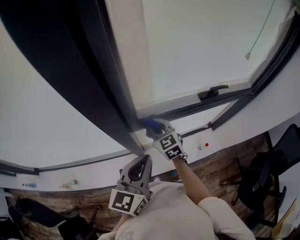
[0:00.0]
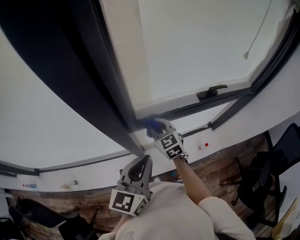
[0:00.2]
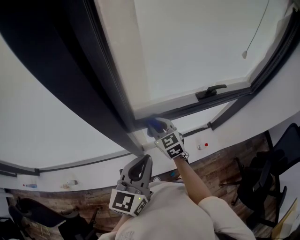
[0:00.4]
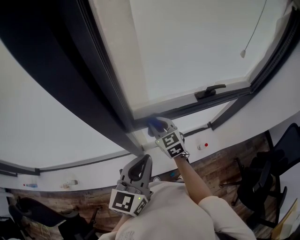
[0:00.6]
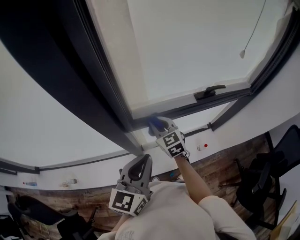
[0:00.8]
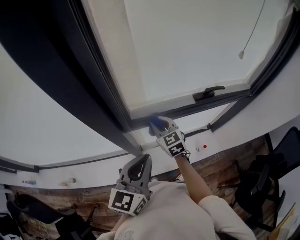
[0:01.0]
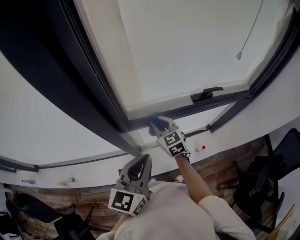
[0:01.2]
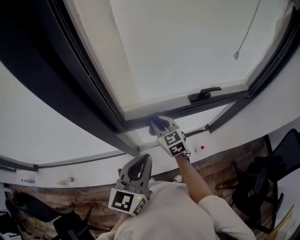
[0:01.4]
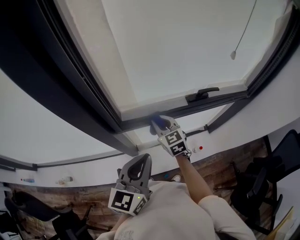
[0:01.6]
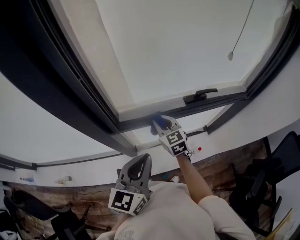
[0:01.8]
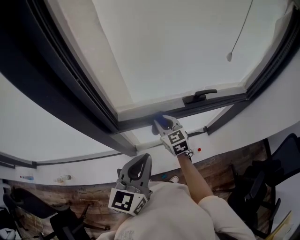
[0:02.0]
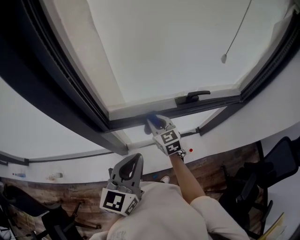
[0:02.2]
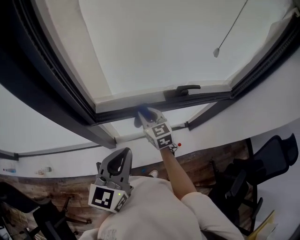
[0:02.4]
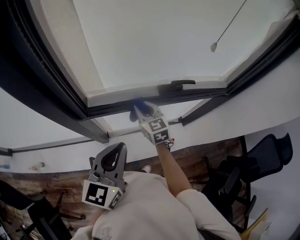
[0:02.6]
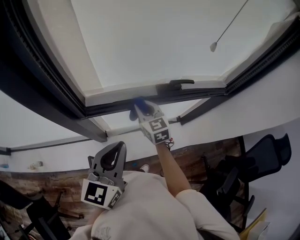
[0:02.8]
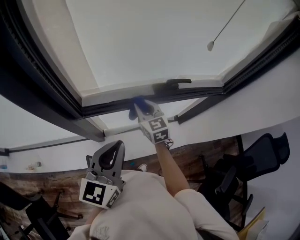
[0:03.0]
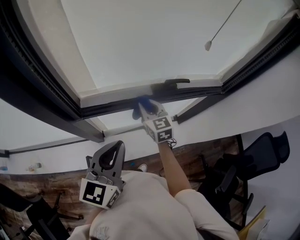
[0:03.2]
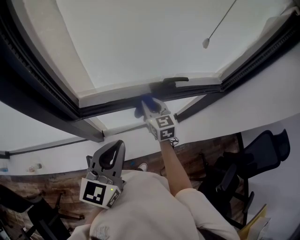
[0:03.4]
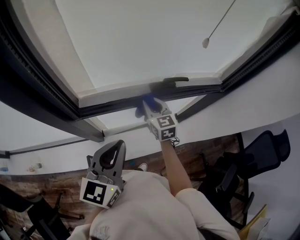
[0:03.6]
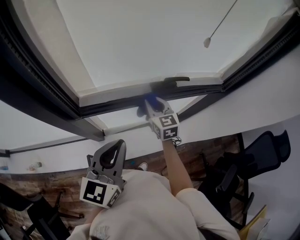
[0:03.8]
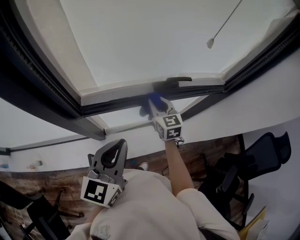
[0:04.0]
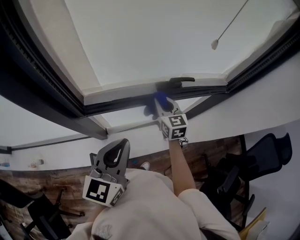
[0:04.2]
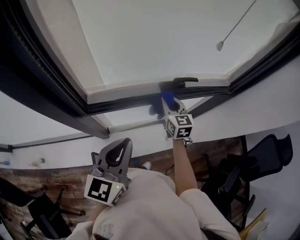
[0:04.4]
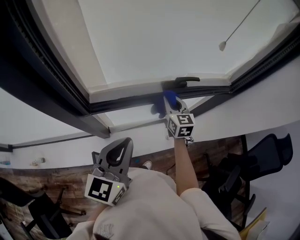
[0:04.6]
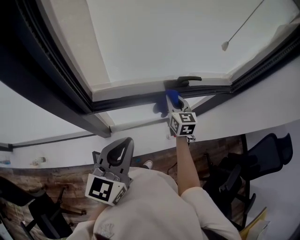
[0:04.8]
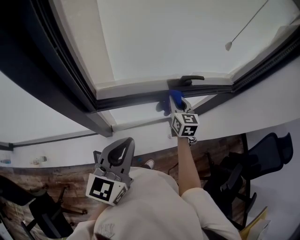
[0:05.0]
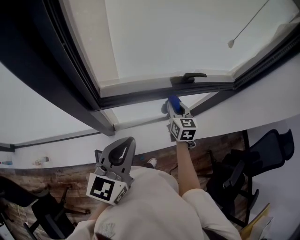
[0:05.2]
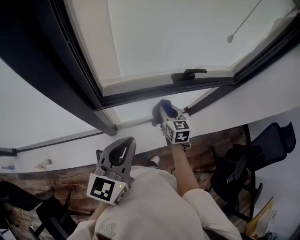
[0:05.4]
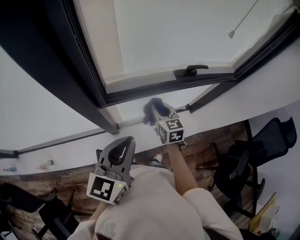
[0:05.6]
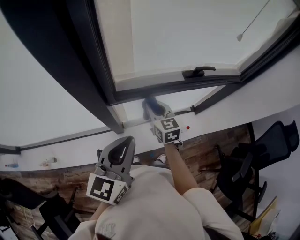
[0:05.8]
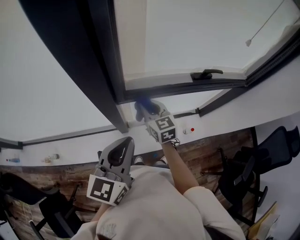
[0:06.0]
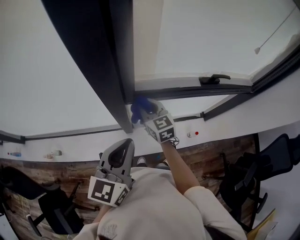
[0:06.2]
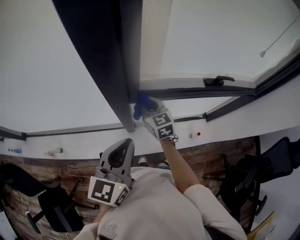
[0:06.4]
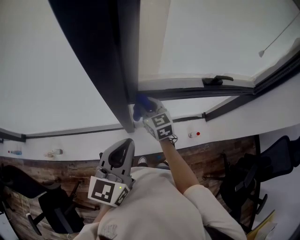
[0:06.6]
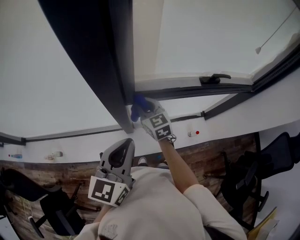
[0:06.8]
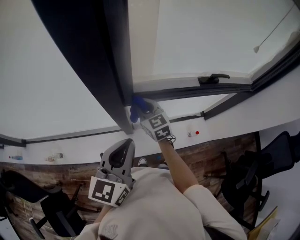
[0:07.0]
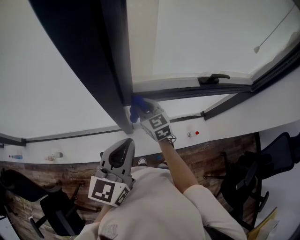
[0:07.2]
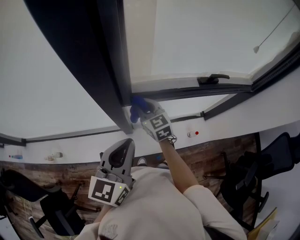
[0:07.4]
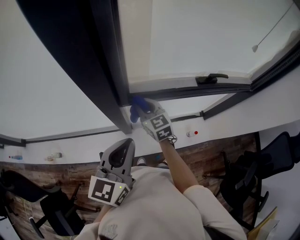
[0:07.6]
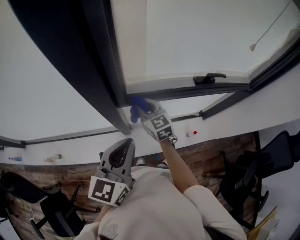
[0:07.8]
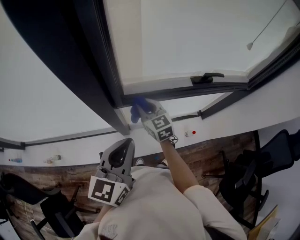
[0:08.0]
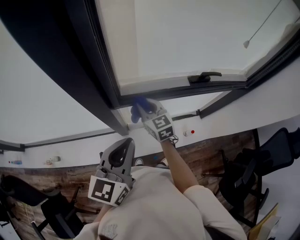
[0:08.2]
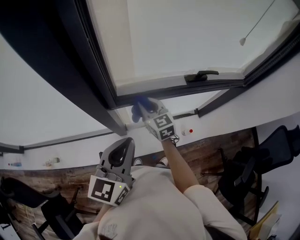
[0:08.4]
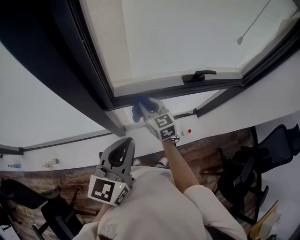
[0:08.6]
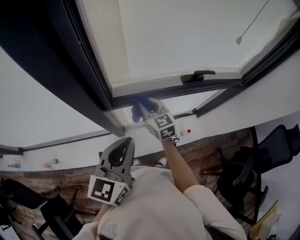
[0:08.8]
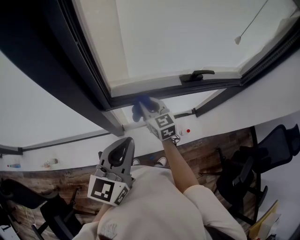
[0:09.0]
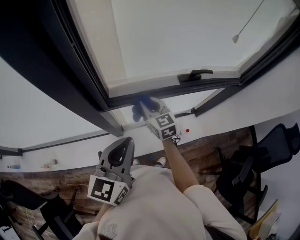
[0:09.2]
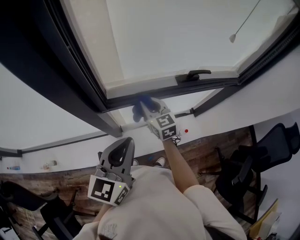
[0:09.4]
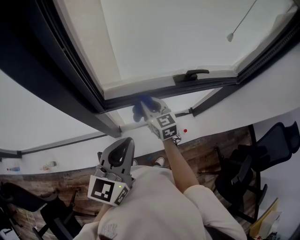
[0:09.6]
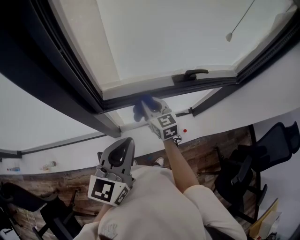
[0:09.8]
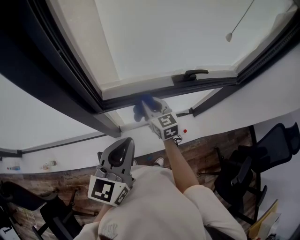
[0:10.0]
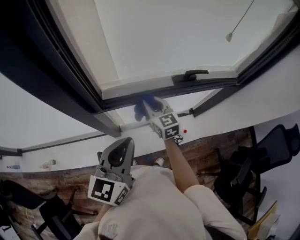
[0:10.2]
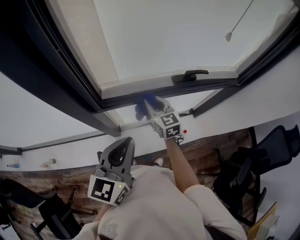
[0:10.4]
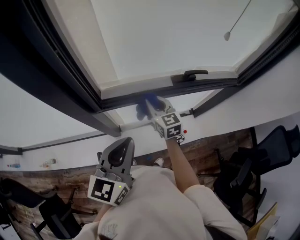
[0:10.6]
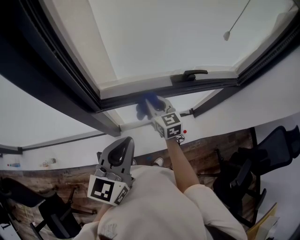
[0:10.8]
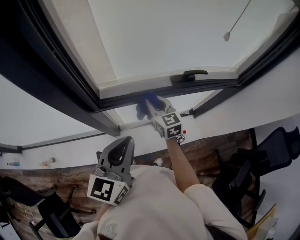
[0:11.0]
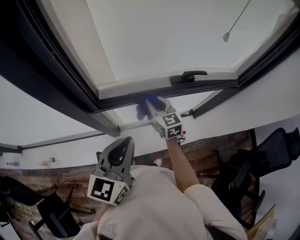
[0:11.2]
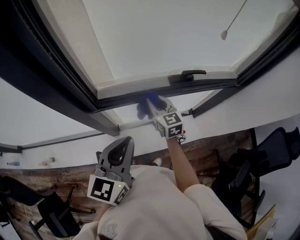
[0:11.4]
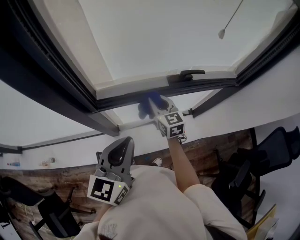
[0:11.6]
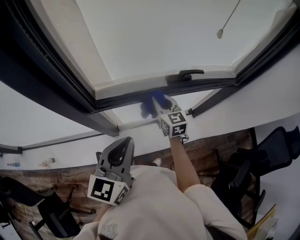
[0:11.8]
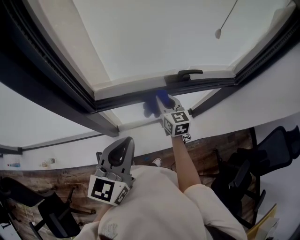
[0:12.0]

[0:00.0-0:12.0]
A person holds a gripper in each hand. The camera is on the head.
0:00.0 to 0:01.6: Both grippers travel together to the right, approximately 10 cm.
0:01.6 to 0:03.0: The right gripper shifts approximately 10 cm to the right, while the left gripper goes approximately 5 cm to the right.
0:03.0 to 0:04.4: The right gripper moves to the right, roughly 10 cm.
0:04.4 to 0:06.0: The right gripper moves to the left and backward, about 25 cm. The left gripper is displaced to the left and backward by approximately 15 cm.
0:07.6 to 0:09.0: The right gripper heads to the right, covering approximately 10 cm. The left gripper shifts some 5 cm to the right.
0:09.0 to 0:10.4: The right gripper goes approximately 5 cm to the right.
0:10.4 to 0:12.0: The right gripper goes roughly 10 cm to the right.

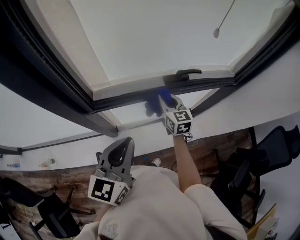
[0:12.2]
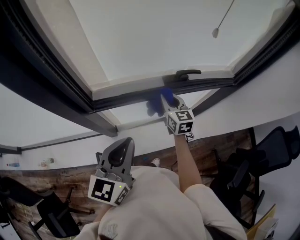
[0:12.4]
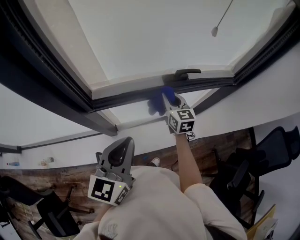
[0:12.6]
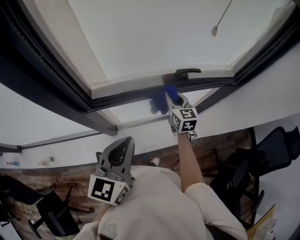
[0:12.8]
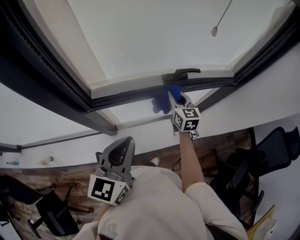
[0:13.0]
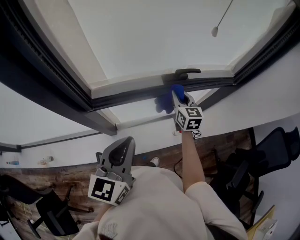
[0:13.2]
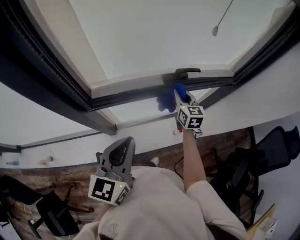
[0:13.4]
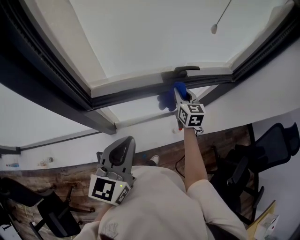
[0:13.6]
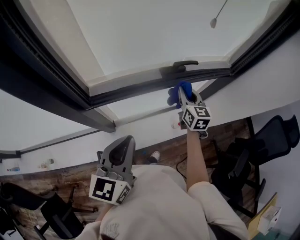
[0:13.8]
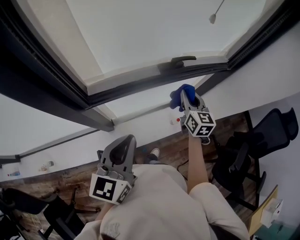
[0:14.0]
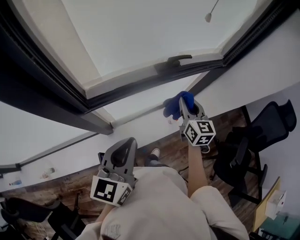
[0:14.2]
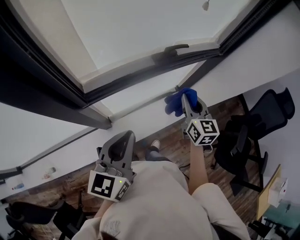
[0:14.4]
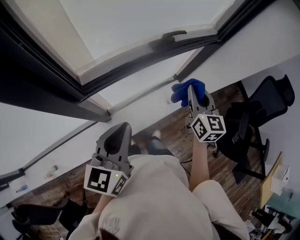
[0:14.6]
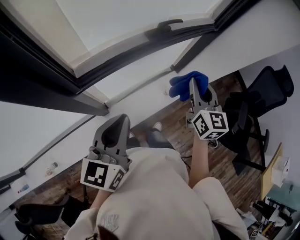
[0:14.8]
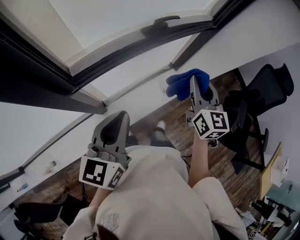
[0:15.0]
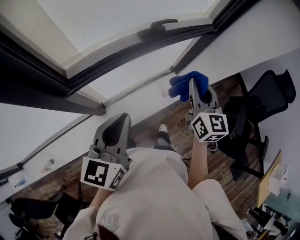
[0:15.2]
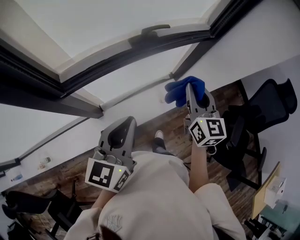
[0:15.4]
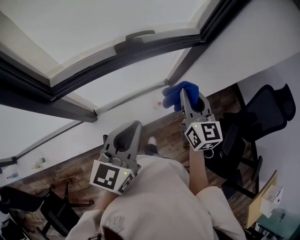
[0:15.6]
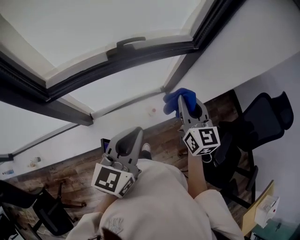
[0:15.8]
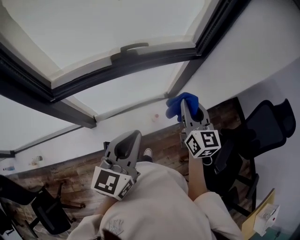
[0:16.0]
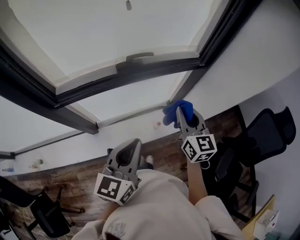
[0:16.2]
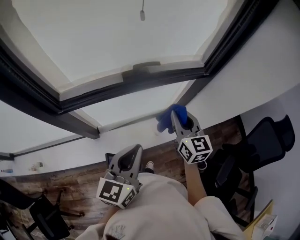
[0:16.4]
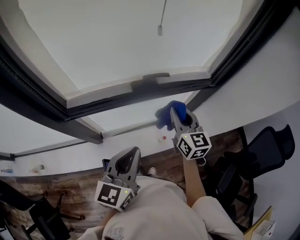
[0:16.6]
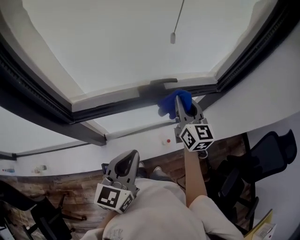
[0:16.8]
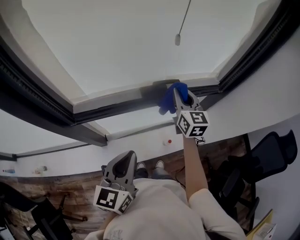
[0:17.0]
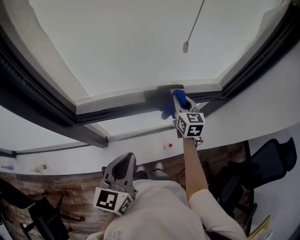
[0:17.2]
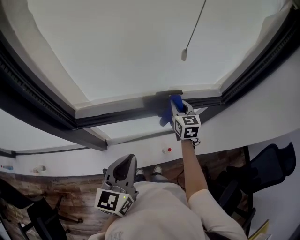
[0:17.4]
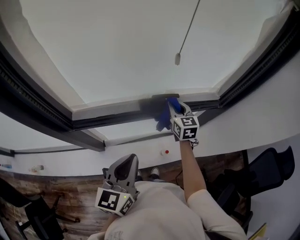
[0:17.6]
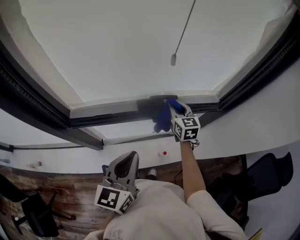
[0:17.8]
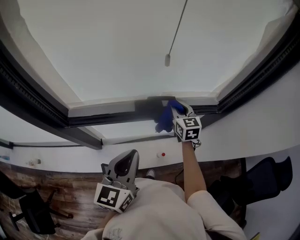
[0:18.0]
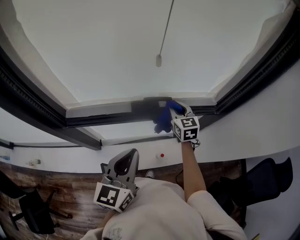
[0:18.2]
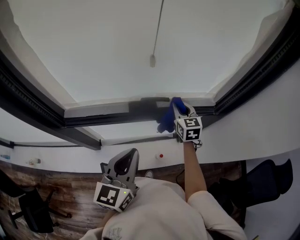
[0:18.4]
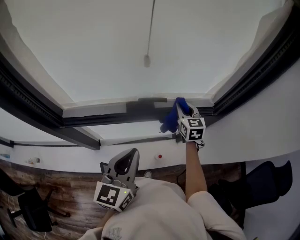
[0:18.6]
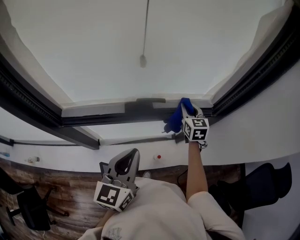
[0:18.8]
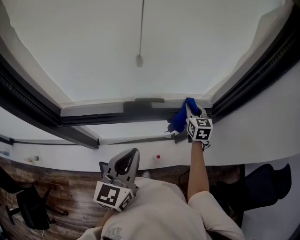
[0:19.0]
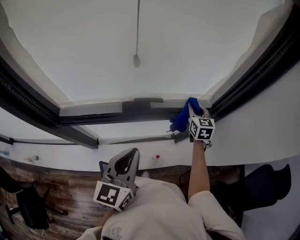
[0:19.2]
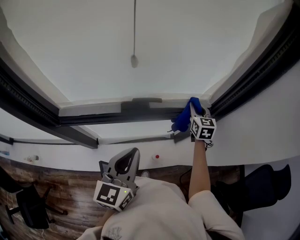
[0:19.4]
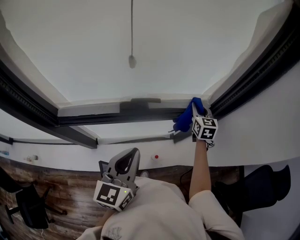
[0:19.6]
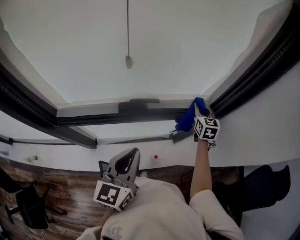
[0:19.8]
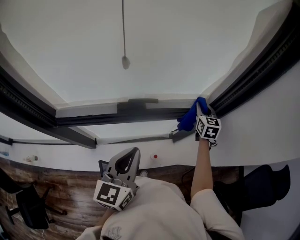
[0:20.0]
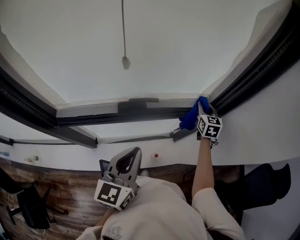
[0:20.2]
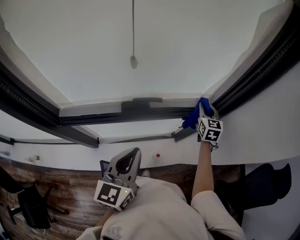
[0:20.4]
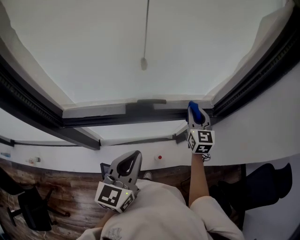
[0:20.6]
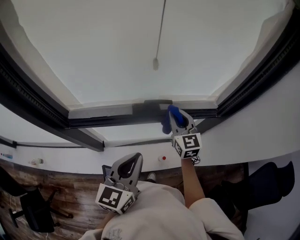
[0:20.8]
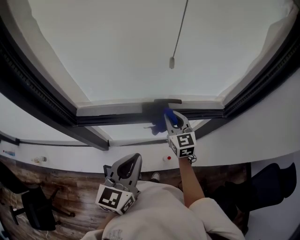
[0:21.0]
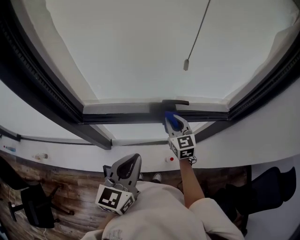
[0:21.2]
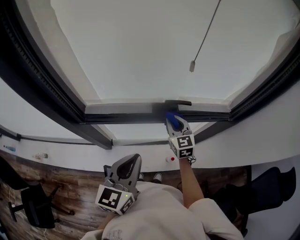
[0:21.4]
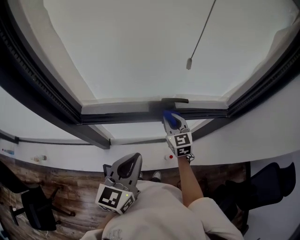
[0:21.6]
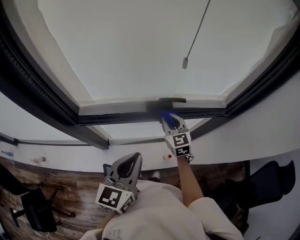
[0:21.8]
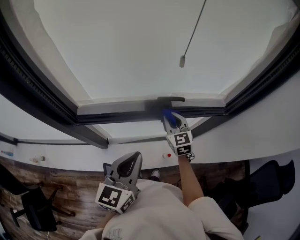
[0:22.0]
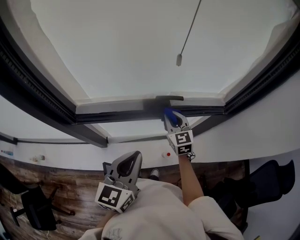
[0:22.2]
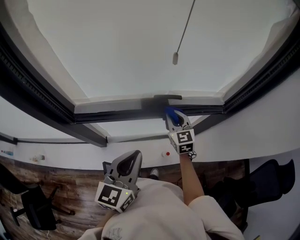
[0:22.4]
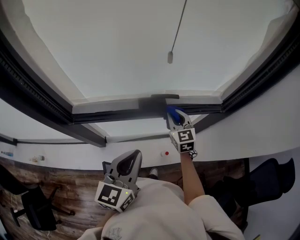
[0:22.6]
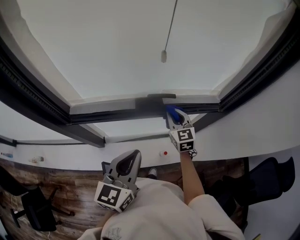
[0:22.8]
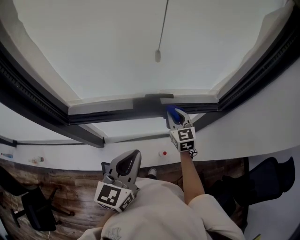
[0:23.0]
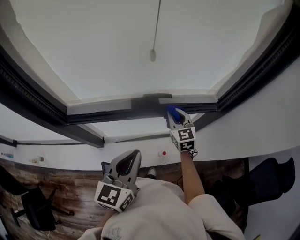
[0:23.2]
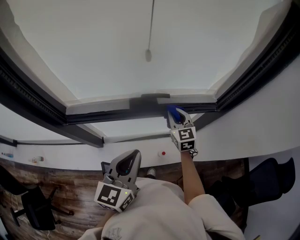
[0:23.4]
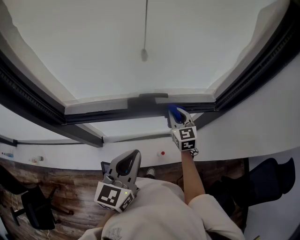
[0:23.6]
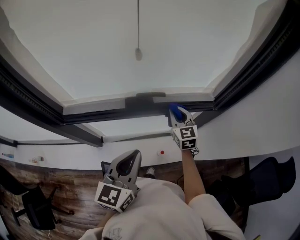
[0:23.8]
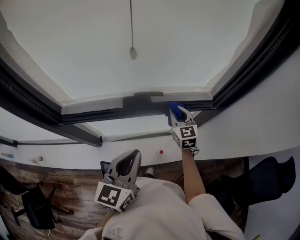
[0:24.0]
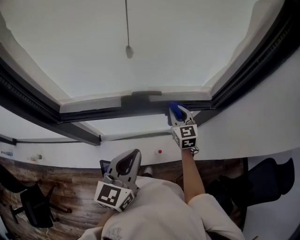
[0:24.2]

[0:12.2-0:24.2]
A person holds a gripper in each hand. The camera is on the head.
0:12.2 to 0:13.8: The right gripper heads to the right, covering some 10 cm.
0:13.8 to 0:15.2: The right gripper goes some 20 cm backward, to the right and upward.
0:15.2 to 0:16.6: The right gripper shifts approximately 10 cm forward, travels to the right and back again, approximately 15 cm each way, and rotates some 20 degrees; the left gripper shifts roughly 15 cm to the right.
0:16.6 to 0:18.2: The right gripper shifts about 15 cm forward. Meanwhile the left gripper goes roughly 10 cm forward, and moves roughly 5 cm to the left and comes back.
0:18.2 to 0:19.8: The left gripper moves to the right, approximately 5 cm. The right gripper moves to the right, roughly 20 cm.
0:19.8 to 0:21.2: The left gripper is displaced to the left and backward by some 10 cm. Meanwhile the right gripper travels to the left and backward by roughly 30 cm, and turns by roughly 20 degrees.
0:21.2 to 0:22.6: The right gripper travels to the right by roughly 5 cm.
0:22.6 to 0:24.2: The two grippers go about 10 cm to the right.
